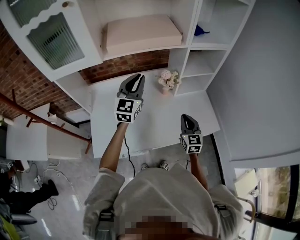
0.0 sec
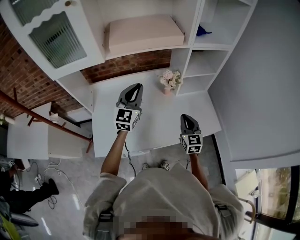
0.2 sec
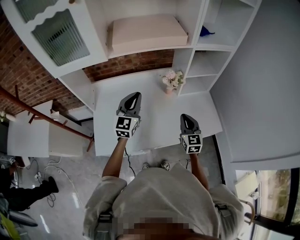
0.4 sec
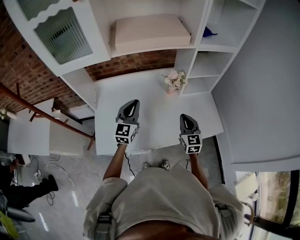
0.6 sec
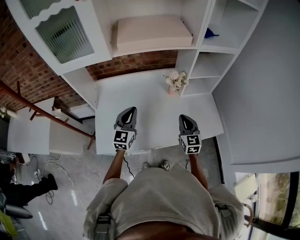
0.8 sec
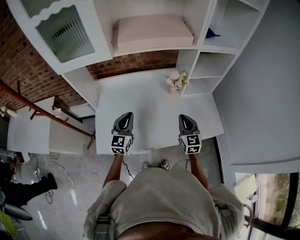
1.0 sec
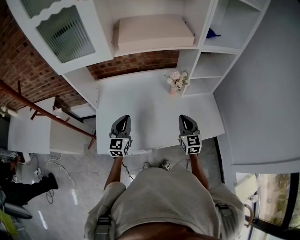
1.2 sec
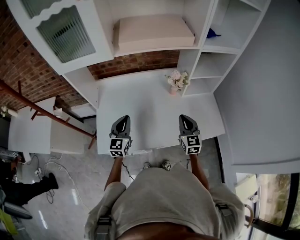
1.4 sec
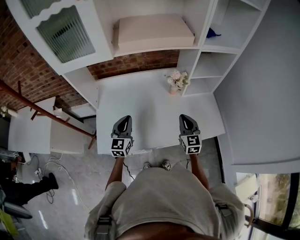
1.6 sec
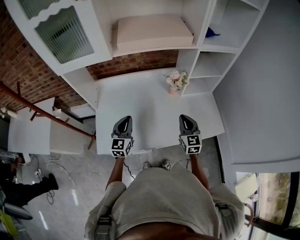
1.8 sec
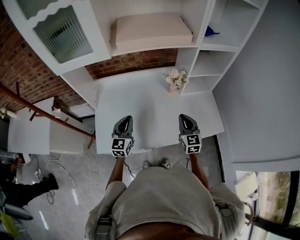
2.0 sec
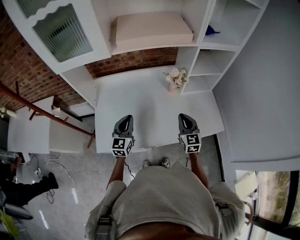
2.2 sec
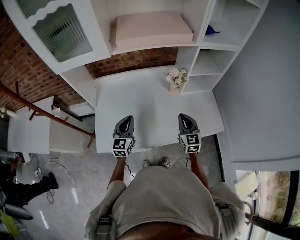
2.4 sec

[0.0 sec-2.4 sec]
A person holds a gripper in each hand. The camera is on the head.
0.0 sec to 1.2 sec: The left gripper heads downward, backward and to the left, covering roughly 25 cm. The right gripper travels to the left by roughly 5 cm.
1.2 sec to 2.4 sec: The grippers make only small movements.

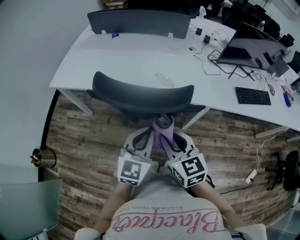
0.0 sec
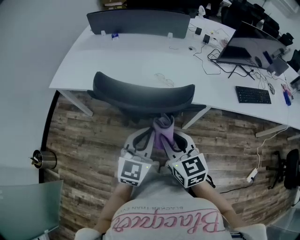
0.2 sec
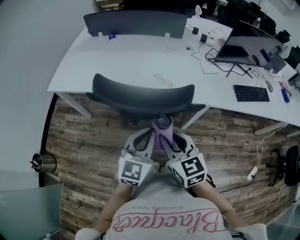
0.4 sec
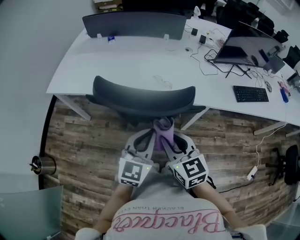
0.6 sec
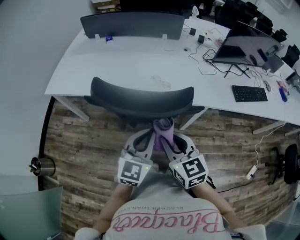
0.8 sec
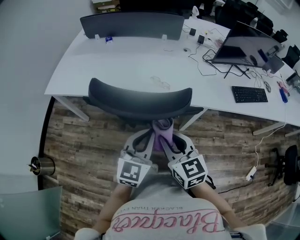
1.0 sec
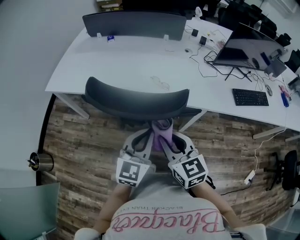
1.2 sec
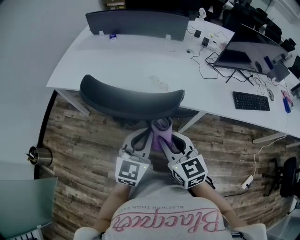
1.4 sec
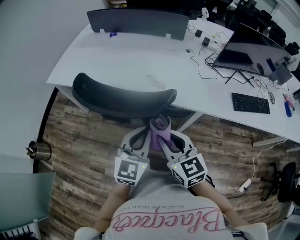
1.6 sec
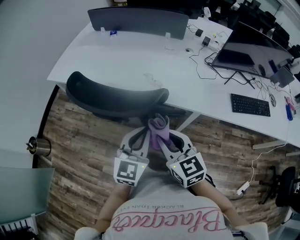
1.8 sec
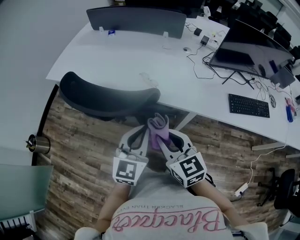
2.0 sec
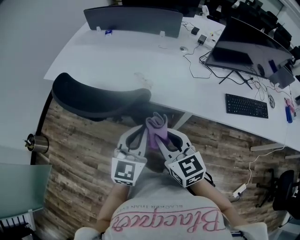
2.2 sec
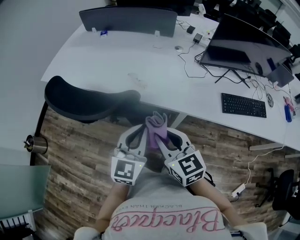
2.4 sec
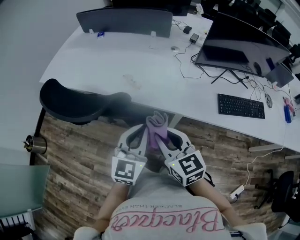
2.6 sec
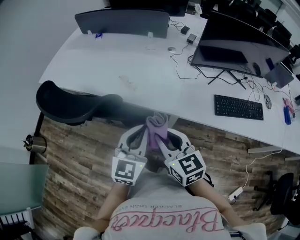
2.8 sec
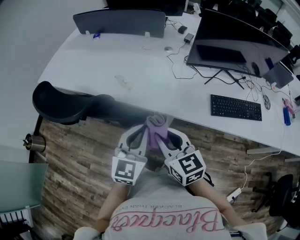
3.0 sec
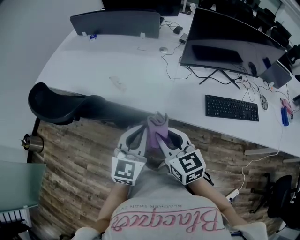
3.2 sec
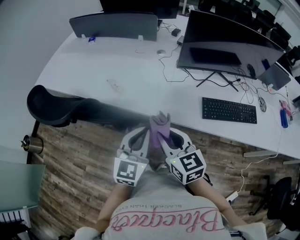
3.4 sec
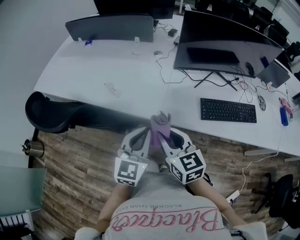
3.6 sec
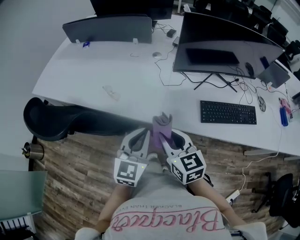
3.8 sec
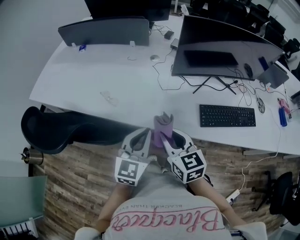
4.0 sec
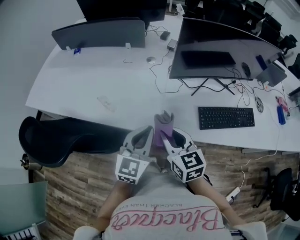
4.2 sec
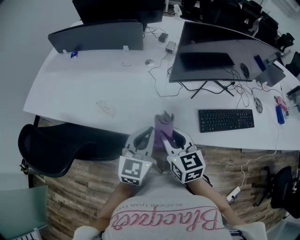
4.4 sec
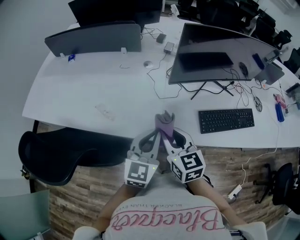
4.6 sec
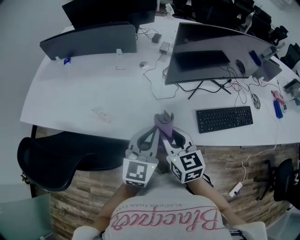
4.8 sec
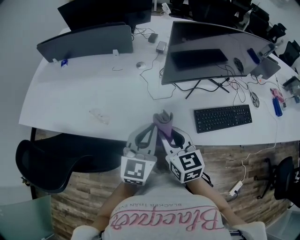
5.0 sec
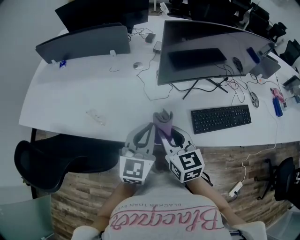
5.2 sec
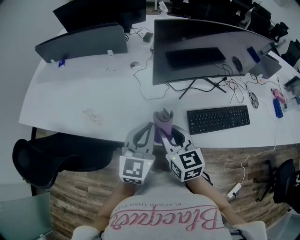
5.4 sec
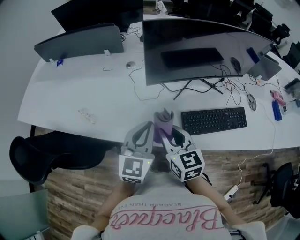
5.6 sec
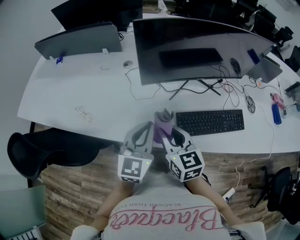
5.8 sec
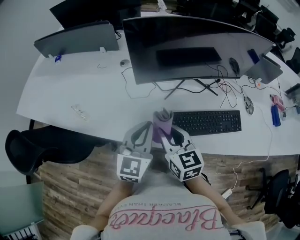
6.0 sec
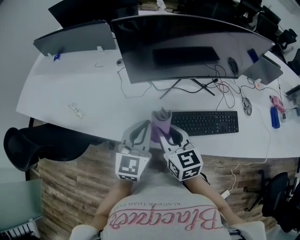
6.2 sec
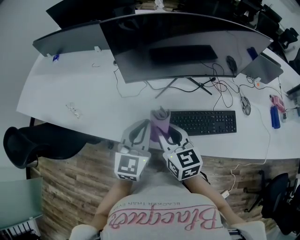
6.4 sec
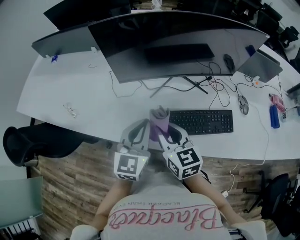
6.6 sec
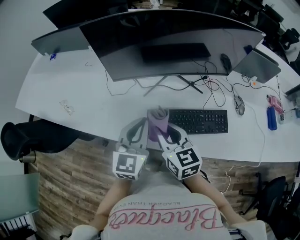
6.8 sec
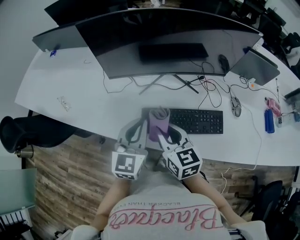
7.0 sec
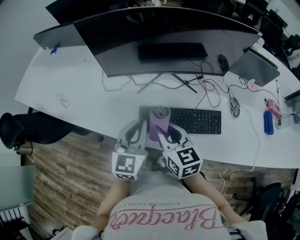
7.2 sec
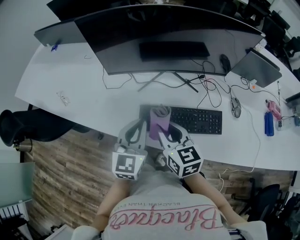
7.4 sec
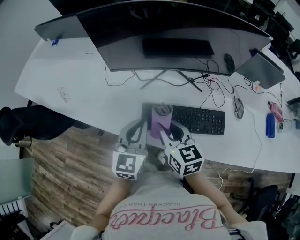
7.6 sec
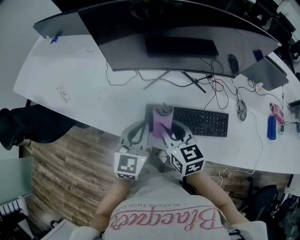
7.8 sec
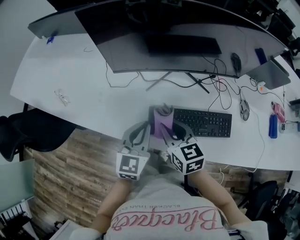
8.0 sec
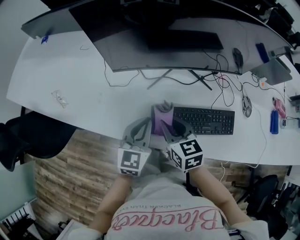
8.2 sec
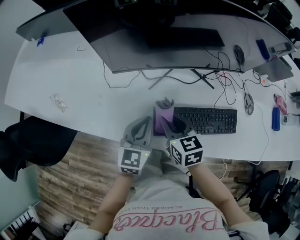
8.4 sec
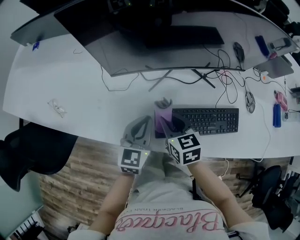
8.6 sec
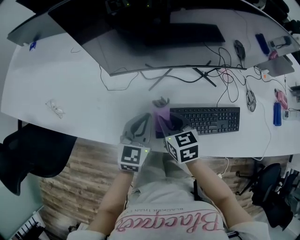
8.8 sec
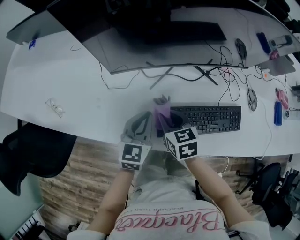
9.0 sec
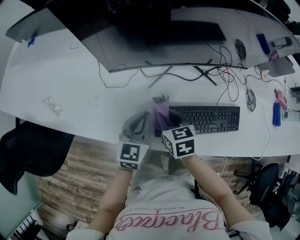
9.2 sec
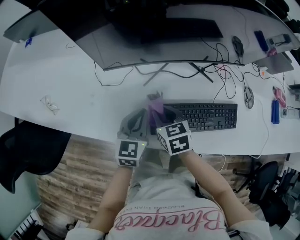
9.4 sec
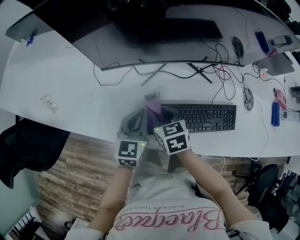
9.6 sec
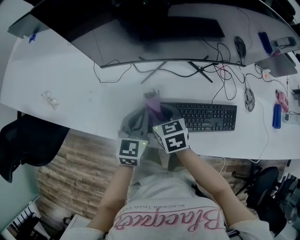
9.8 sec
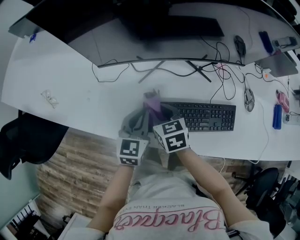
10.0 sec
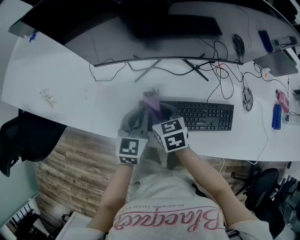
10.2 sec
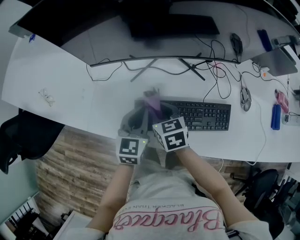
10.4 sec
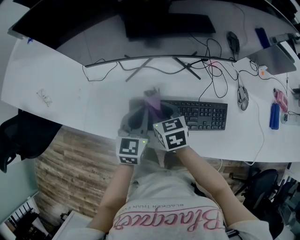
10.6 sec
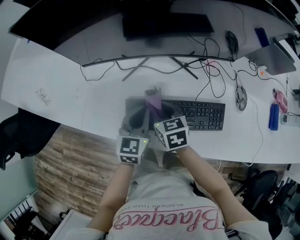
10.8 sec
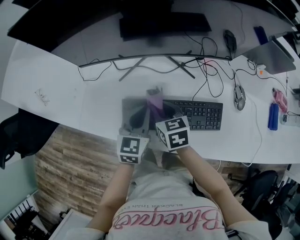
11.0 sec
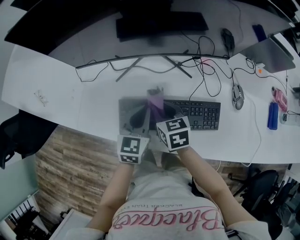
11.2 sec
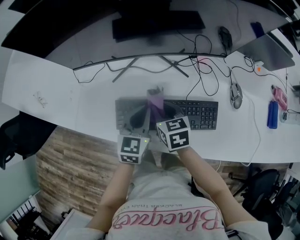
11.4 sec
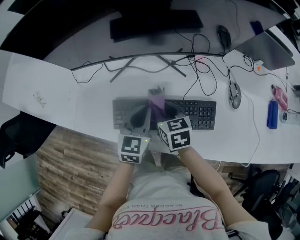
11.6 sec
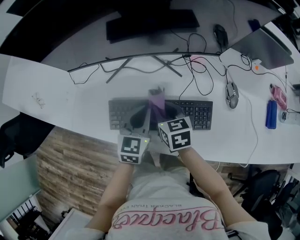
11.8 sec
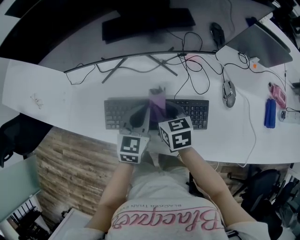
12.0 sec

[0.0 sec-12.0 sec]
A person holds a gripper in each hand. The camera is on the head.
0.0 sec to 1.6 sec: Both grippers move to the right, some 5 cm.
1.6 sec to 3.0 sec: Both grippers move to the right, roughly 20 cm.
3.0 sec to 4.4 sec: Both grippers move forward and to the right, about 15 cm.
4.4 sec to 6.0 sec: Both grippers move to the right, approximately 15 cm.
6.0 sec to 7.6 sec: The grippers both shift to the right by some 15 cm.
7.6 sec to 9.0 sec: Both grippers travel together downward, forward and to the left, some 15 cm. The right gripper rotates some 20 degrees.
9.0 sec to 10.4 sec: Both grippers travel together to the right, approximately 5 cm.
10.4 sec to 12.0 sec: The grippers both shift to the right by roughly 15 cm.

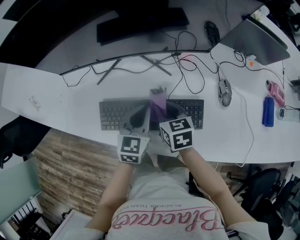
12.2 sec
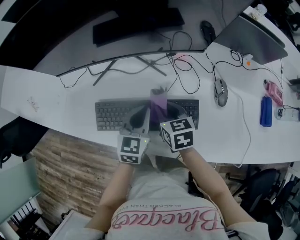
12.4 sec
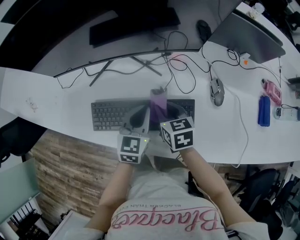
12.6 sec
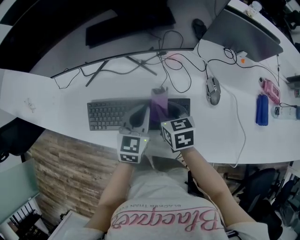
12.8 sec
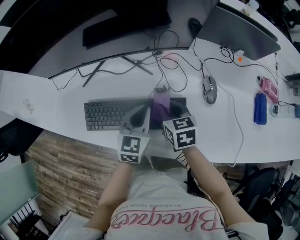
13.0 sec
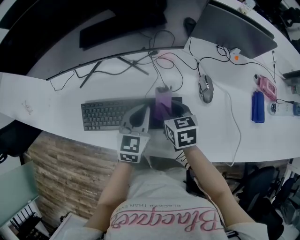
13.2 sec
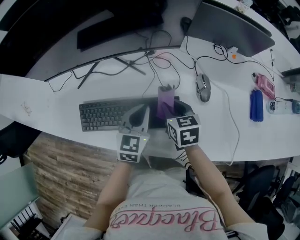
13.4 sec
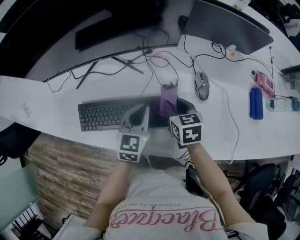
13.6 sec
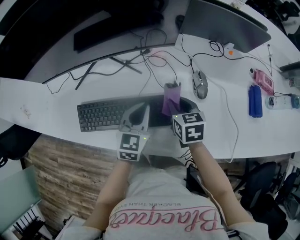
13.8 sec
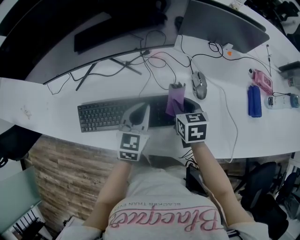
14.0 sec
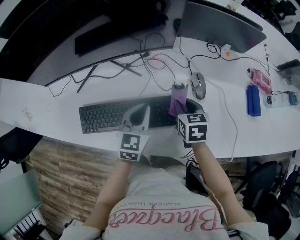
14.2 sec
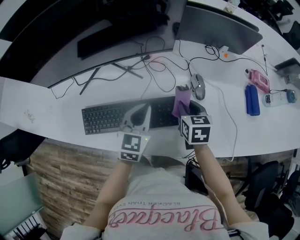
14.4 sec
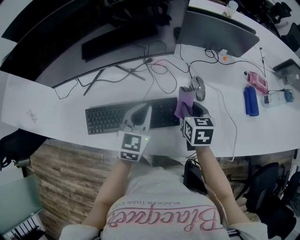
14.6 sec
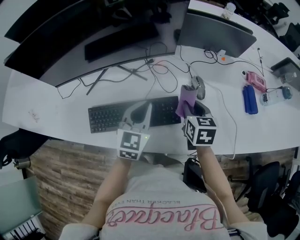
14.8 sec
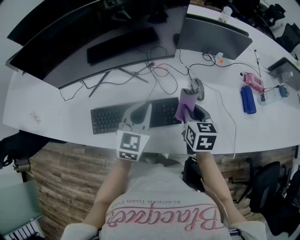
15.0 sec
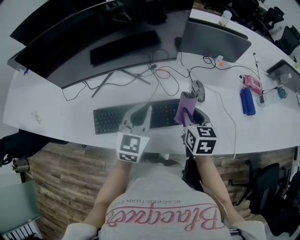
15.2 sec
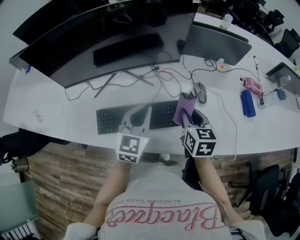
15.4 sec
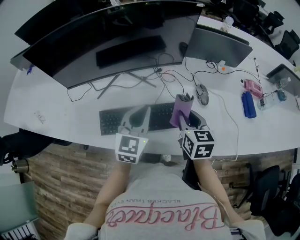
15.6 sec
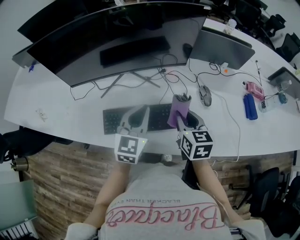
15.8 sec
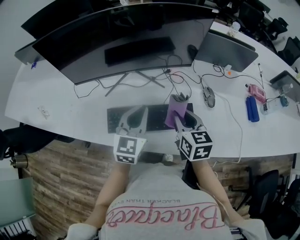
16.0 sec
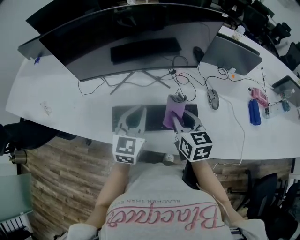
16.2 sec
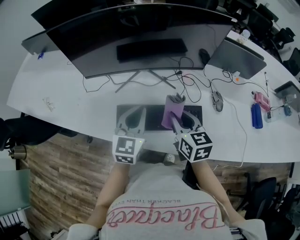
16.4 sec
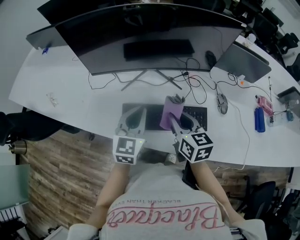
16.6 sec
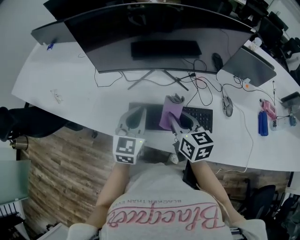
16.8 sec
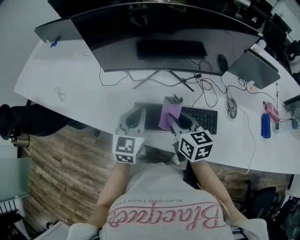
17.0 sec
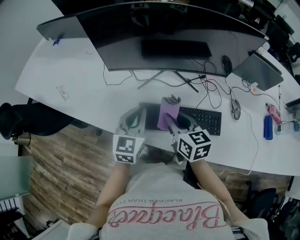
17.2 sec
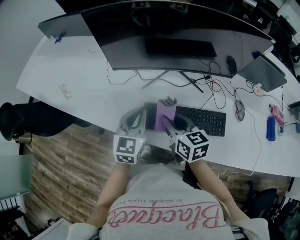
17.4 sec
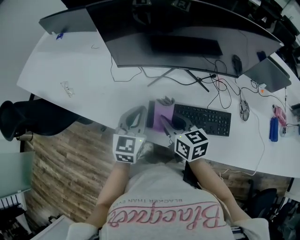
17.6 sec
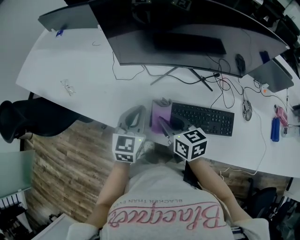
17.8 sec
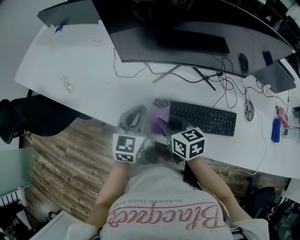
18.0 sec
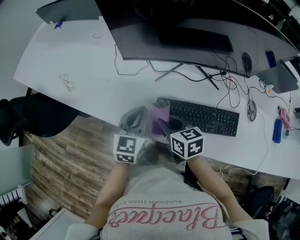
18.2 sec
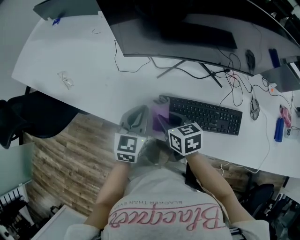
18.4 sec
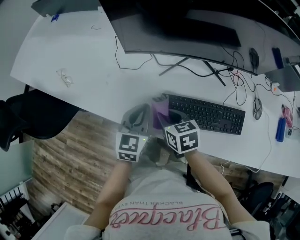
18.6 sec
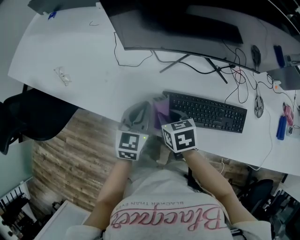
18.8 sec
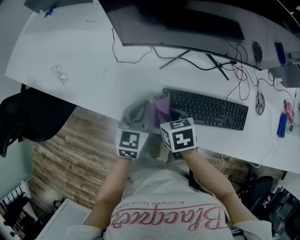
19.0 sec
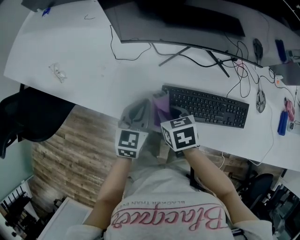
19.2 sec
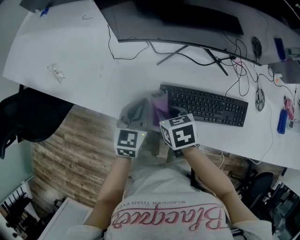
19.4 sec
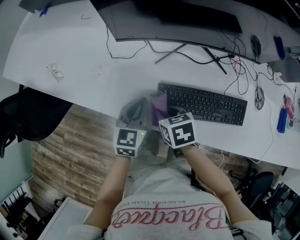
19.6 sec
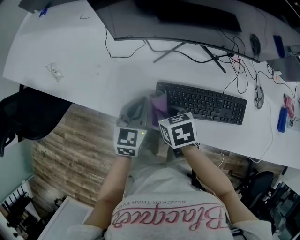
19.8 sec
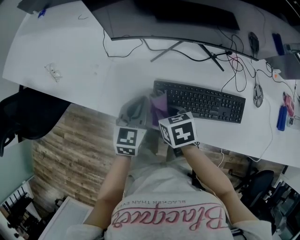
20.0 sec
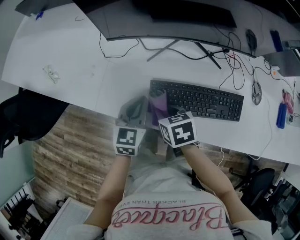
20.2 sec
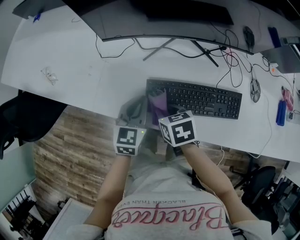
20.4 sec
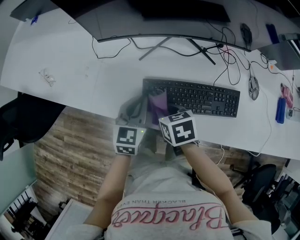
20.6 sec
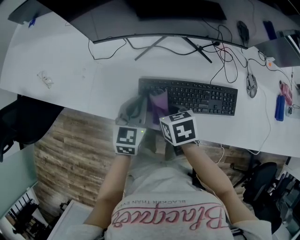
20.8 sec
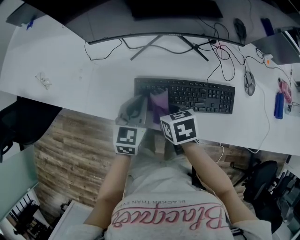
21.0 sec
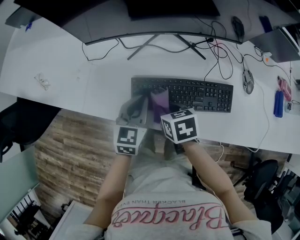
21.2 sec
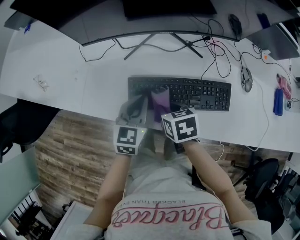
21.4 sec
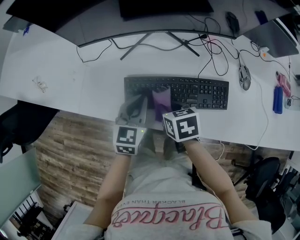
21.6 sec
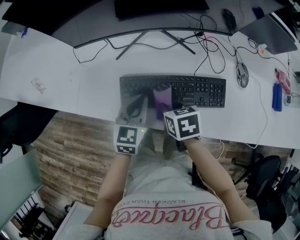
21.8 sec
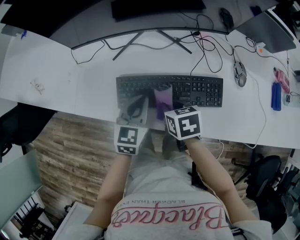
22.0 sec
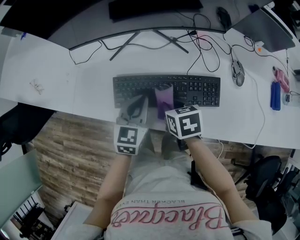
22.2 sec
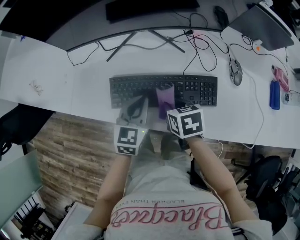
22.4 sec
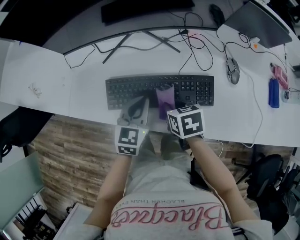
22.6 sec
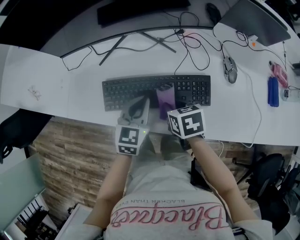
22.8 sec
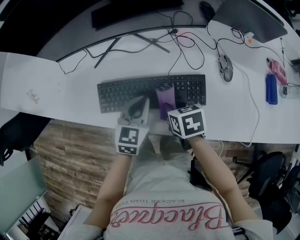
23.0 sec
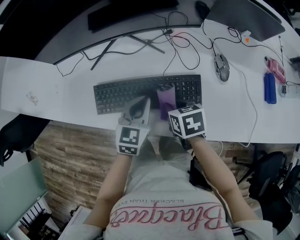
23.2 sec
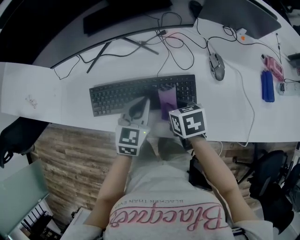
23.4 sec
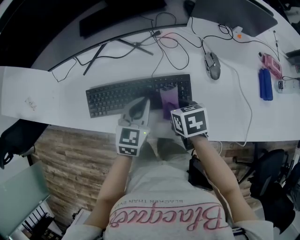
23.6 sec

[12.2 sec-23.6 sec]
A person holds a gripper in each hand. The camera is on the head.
12.2 sec to 13.6 sec: The grippers both shift to the right by about 15 cm.
13.6 sec to 15.0 sec: The right gripper shifts about 10 cm upward and to the right. The left gripper travels upward by roughly 10 cm.
15.0 sec to 16.4 sec: The grippers both shift to the left by approximately 20 cm. The right gripper turns by some 20 degrees.
16.4 sec to 17.8 sec: Both grippers move to the left, about 20 cm. The right gripper swivels approximately 20 degrees.
17.8 sec to 19.4 sec: Both grippers travel together downward, about 10 cm. The right gripper tips its fingers downward by about 30 degrees.
19.4 sec to 20.8 sec: Both grippers travel together to the right, some 5 cm.
20.8 sec to 22.2 sec: The grippers both shift to the right by about 10 cm.
22.2 sec to 23.6 sec: The two grippers go some 15 cm to the right.
